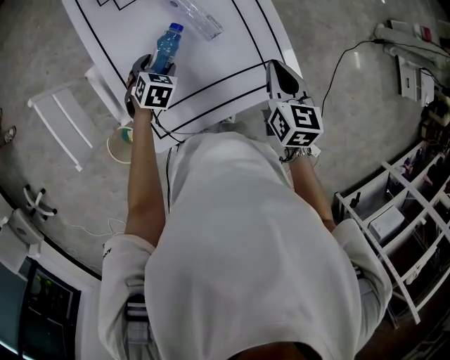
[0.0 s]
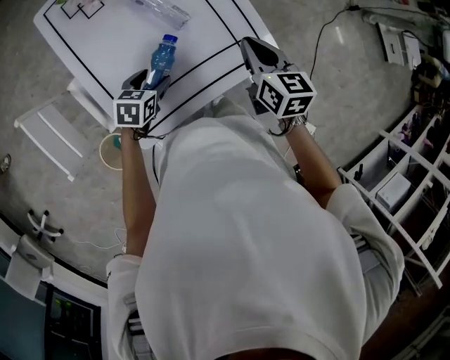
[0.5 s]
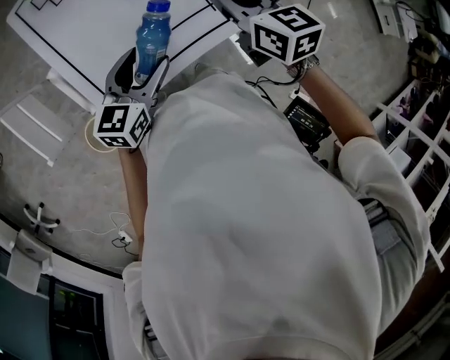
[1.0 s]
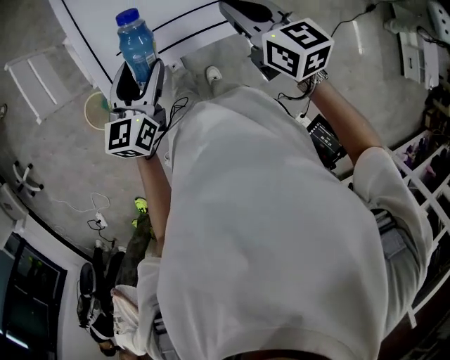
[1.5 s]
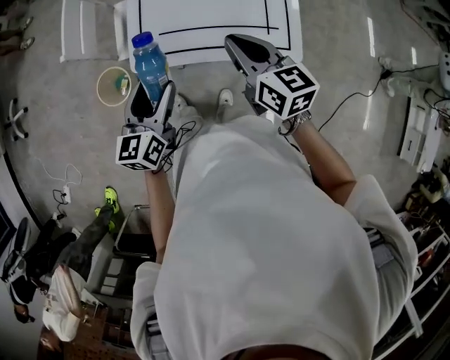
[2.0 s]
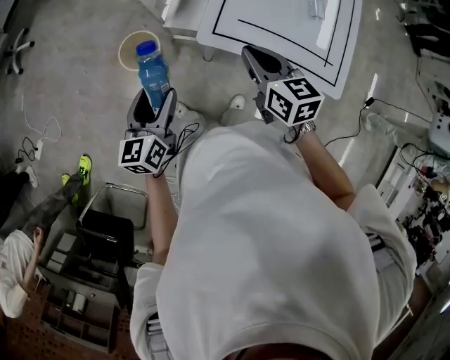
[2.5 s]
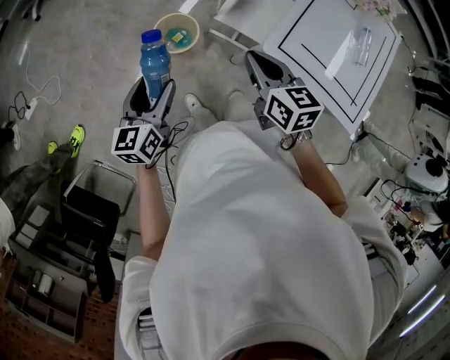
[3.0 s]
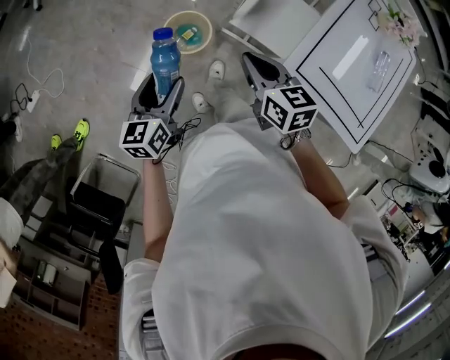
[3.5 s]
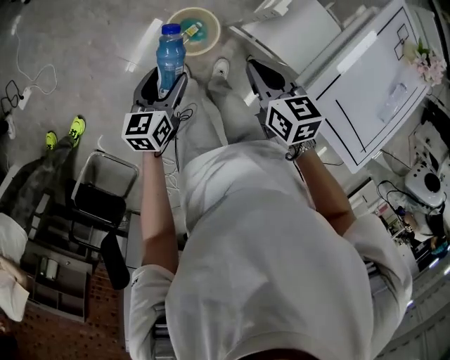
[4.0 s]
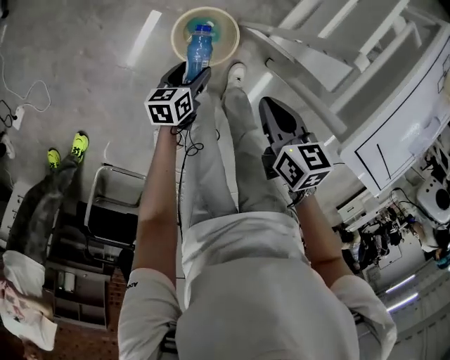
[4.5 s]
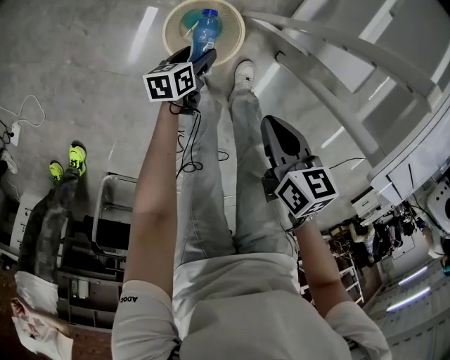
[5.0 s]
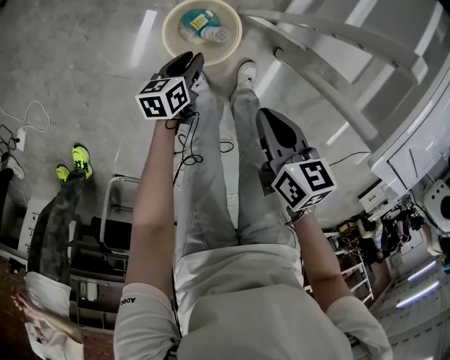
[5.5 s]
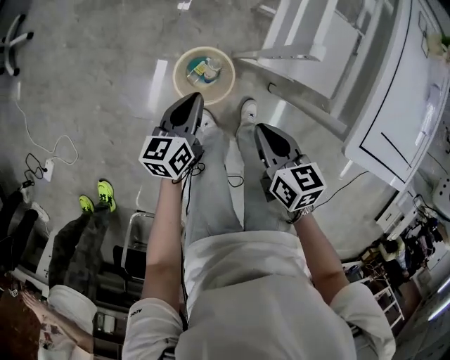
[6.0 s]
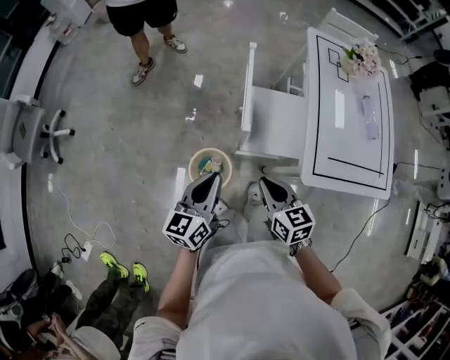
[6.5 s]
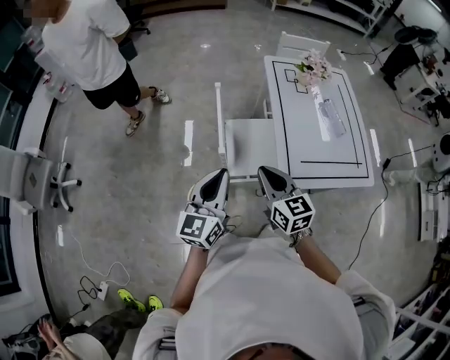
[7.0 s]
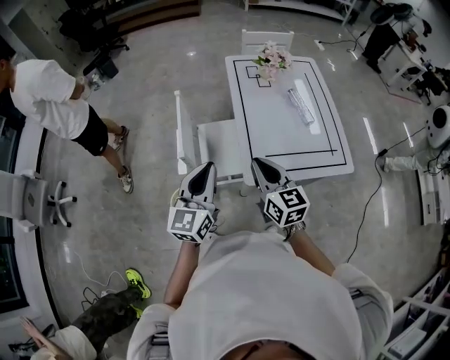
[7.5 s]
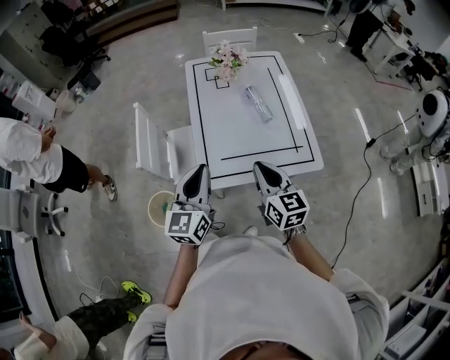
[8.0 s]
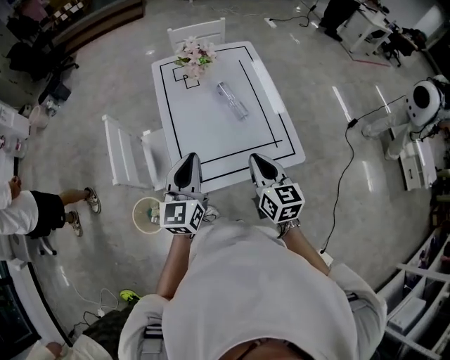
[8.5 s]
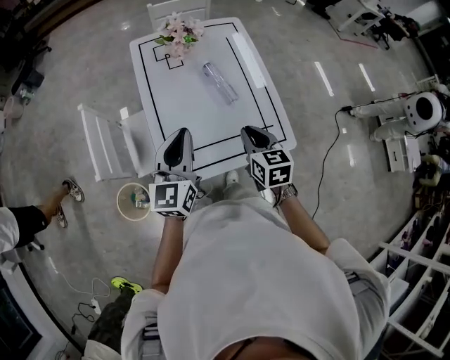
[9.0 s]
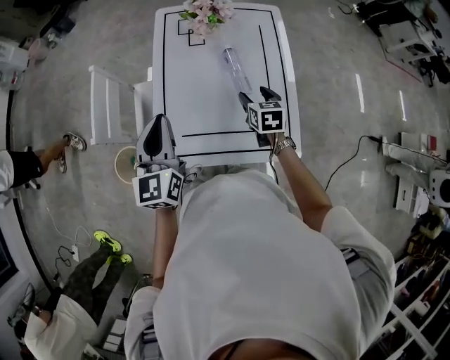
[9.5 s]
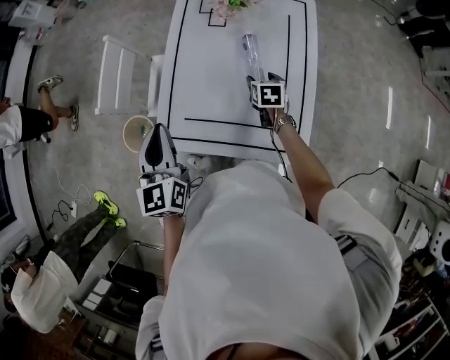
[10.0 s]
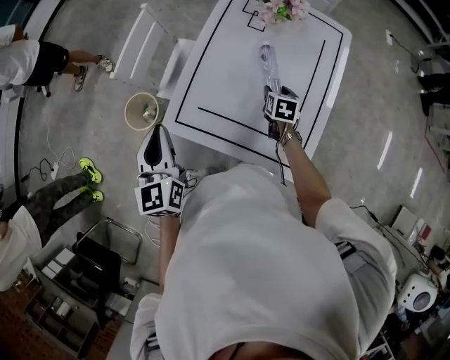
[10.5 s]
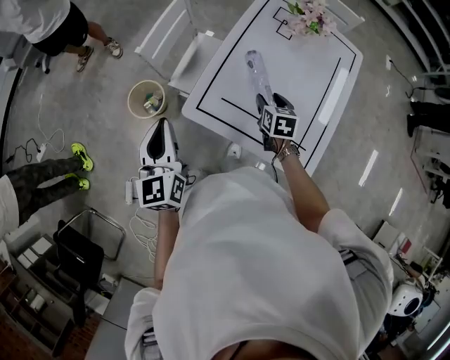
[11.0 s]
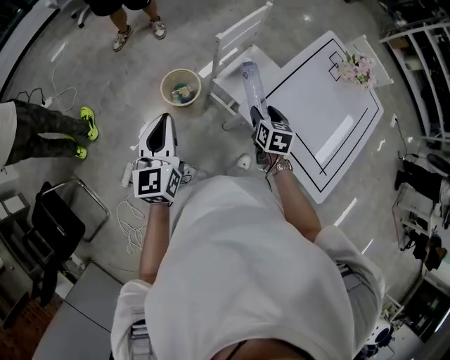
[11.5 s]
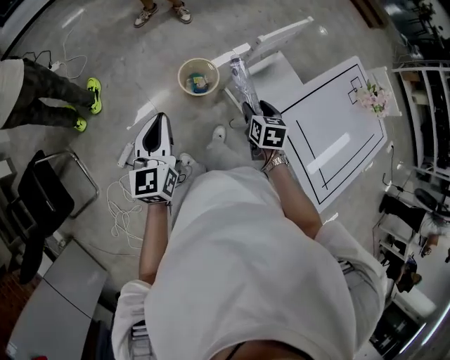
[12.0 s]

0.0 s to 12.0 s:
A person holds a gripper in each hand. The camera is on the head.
0.0 to 2.0 s: The right gripper changes place by some 15 cm, and turns by about 50 degrees, while the left gripper ends up about 40 cm from where it was, and tilts its fingers roughly 40 degrees upward.
2.0 to 4.0 s: The pair of grippers is taken approximately 60 cm. The left gripper turns by approximately 30 degrees. The right gripper rotates approximately 40 degrees.
4.0 to 6.0 s: The right gripper shifts roughly 15 cm downward, and rotates about 20 degrees; the left gripper travels forward by about 10 cm, reaches some 40 cm downward, then returns, and closes up.
6.0 to 8.0 s: Both grippers are carried about 50 cm. The right gripper changes its angle by about 40 degrees; the left gripper turns by about 40 degrees.
8.0 to 10.0 s: The right gripper ends up some 40 cm from where it was, points its fingers some 40 degrees further downward, and opens. Meanwhile the left gripper ends up approximately 15 cm from where it was, and turns by roughly 40 degrees.
10.0 to 12.0 s: The pair of grippers is taken roughly 60 cm. The left gripper rotates some 40 degrees. The right gripper changes its angle by about 40 degrees.

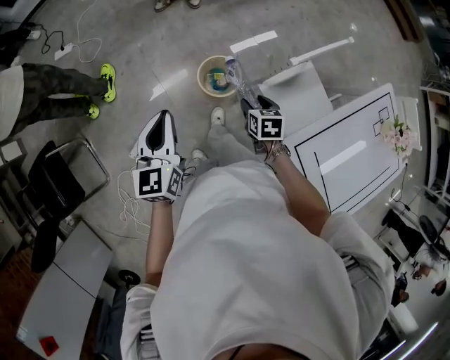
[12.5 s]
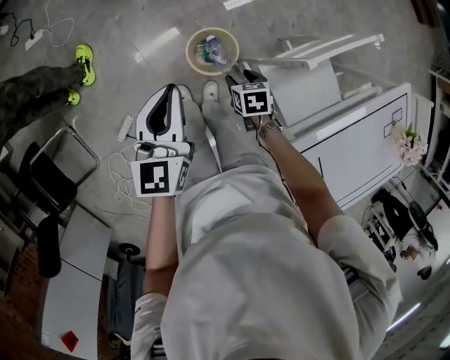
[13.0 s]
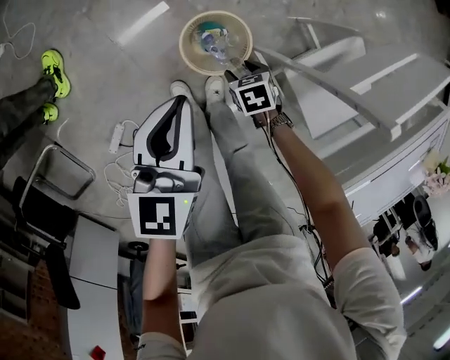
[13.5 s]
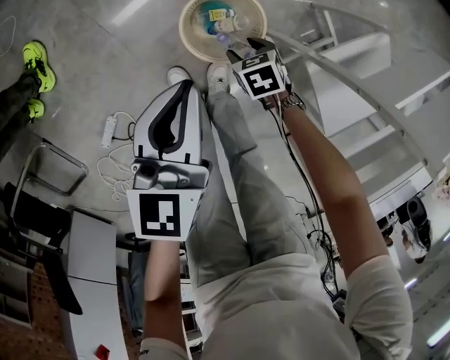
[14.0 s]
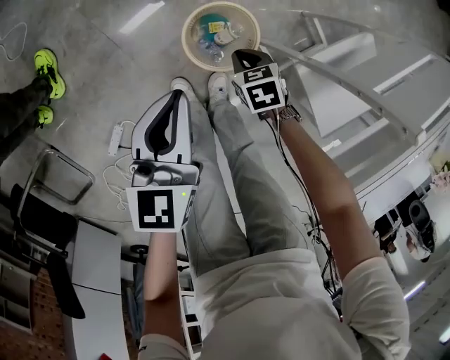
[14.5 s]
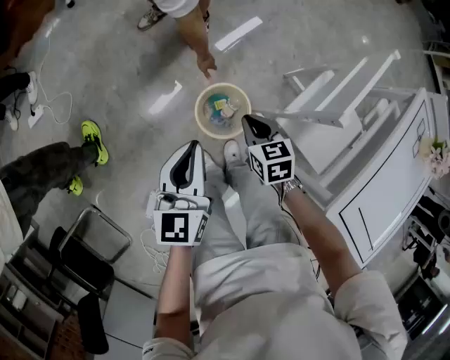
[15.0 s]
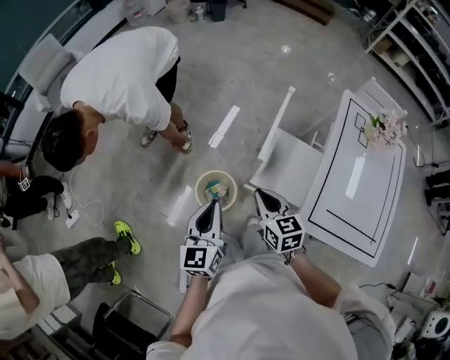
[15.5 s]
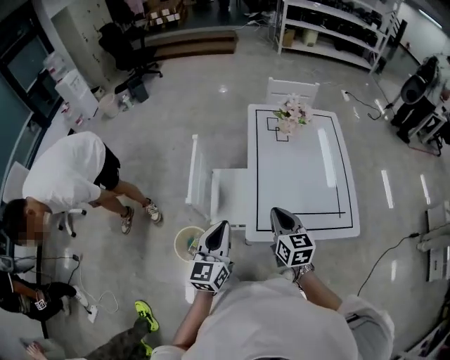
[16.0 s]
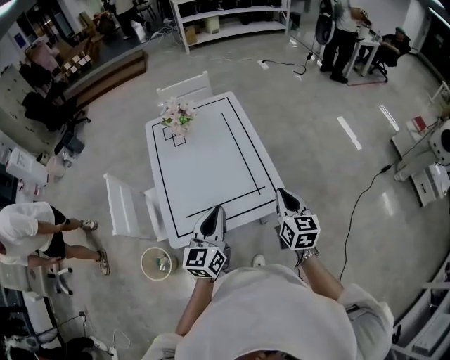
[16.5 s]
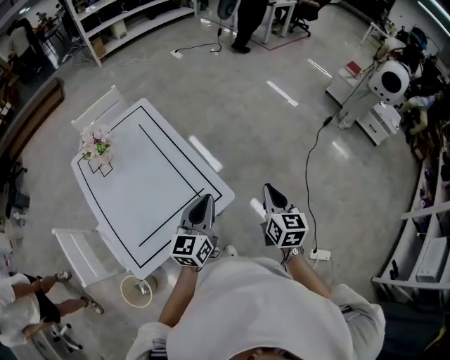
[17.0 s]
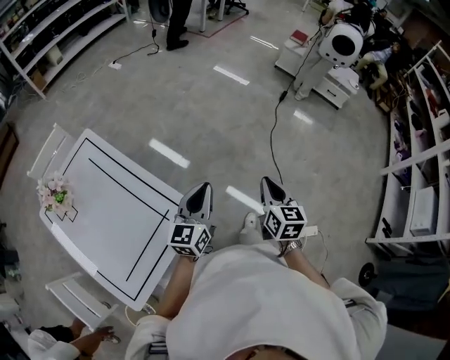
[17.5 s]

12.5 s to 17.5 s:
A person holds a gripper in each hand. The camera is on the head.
12.5 to 15.0 s: The left gripper changes place by some 30 cm, and swivels about 20 degrees; the right gripper closes its fingers.
15.0 to 17.5 s: The pair of grippers is taken roughly 1 m. The right gripper swivels roughly 120 degrees, while the left gripper rotates roughly 110 degrees.

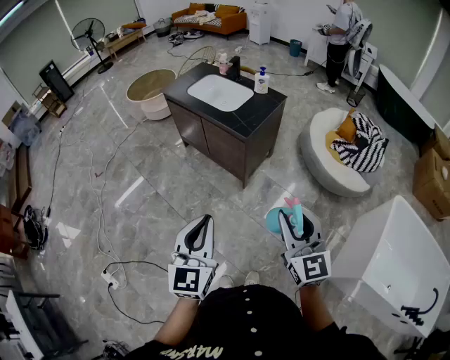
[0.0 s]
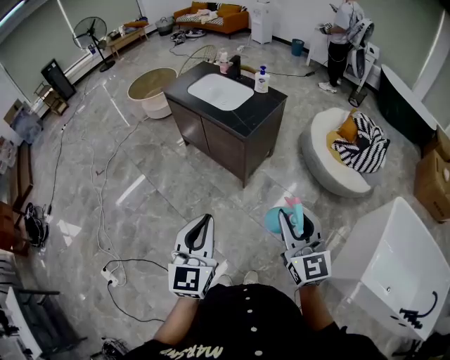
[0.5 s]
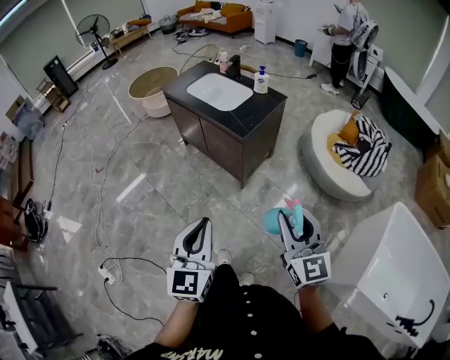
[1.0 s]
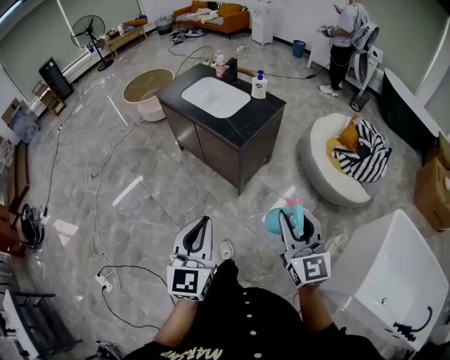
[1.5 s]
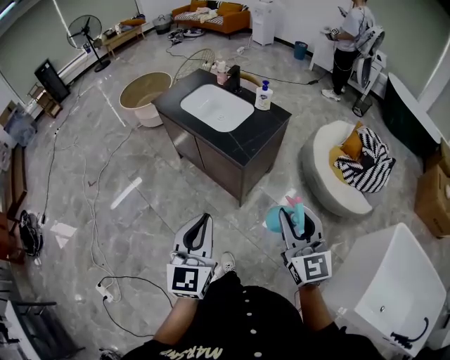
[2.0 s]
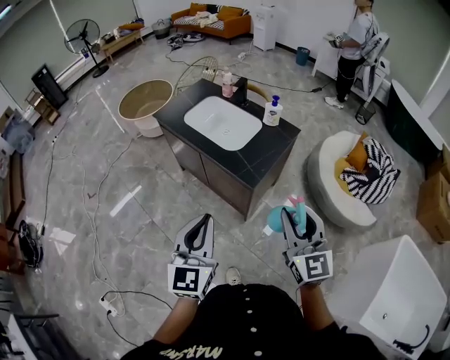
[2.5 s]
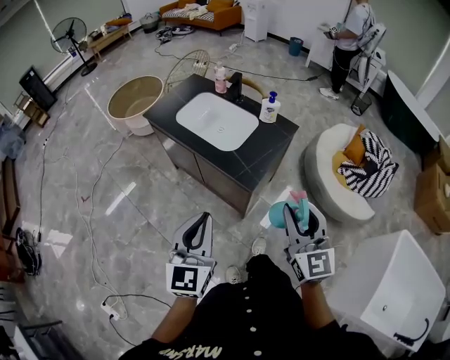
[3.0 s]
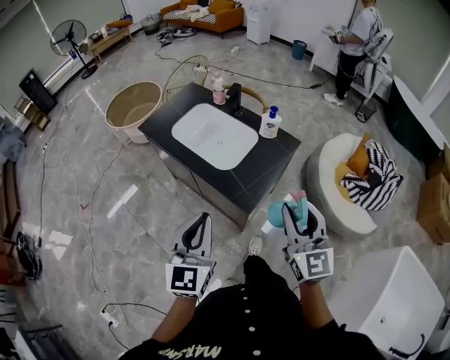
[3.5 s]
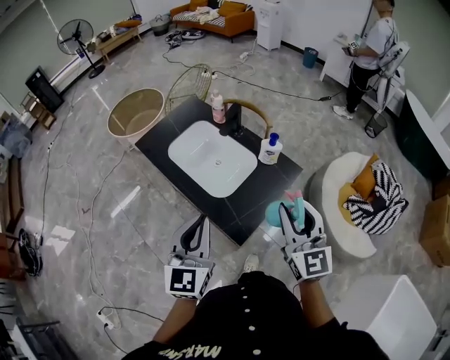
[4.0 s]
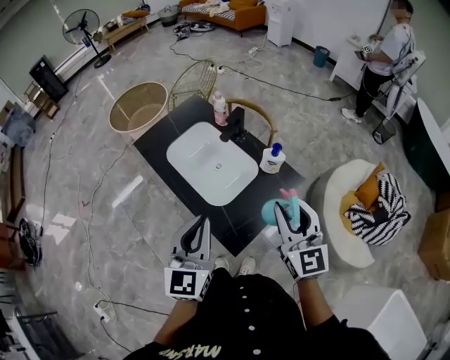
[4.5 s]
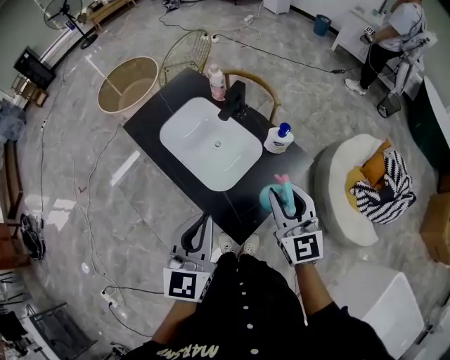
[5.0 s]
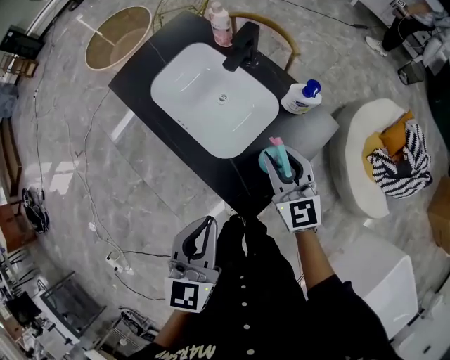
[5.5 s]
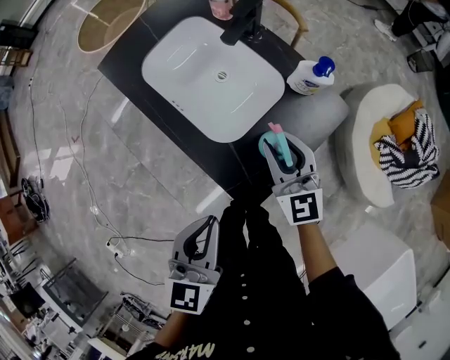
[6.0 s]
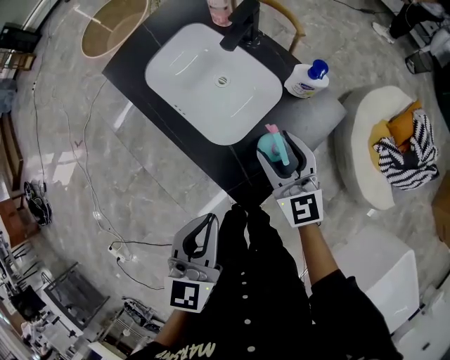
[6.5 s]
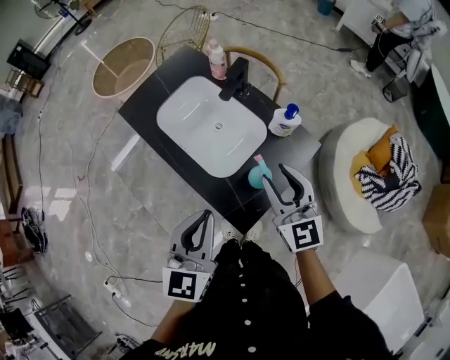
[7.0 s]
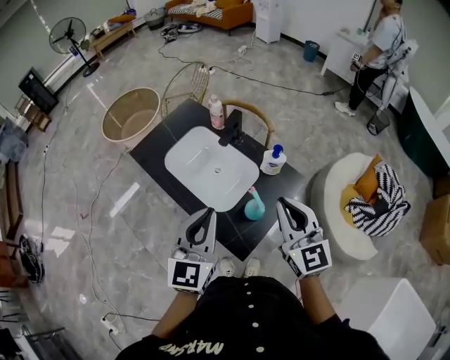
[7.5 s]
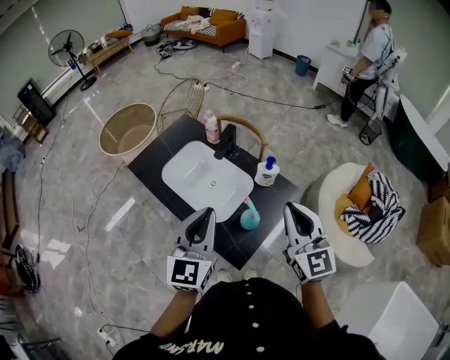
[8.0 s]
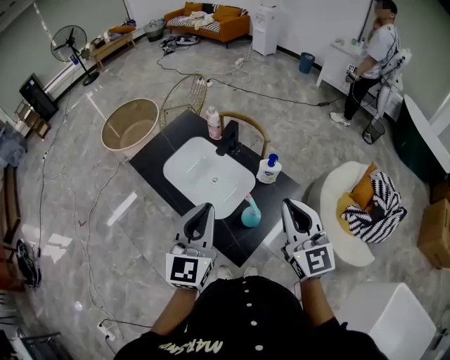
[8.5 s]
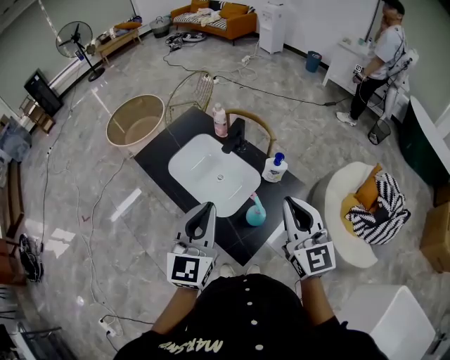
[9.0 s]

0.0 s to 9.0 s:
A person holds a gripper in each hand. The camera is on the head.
0.0 to 2.0 s: Both grippers travel together forward, approximately 20 cm.
2.0 to 4.5 s: The two grippers travel together, forward, approximately 50 cm.
4.5 to 7.0 s: The right gripper shifts approximately 15 cm downward, forward and to the left, and opens and closes again. Meanwhile the left gripper heads downward, covering approximately 5 cm.
7.0 to 9.0 s: The two grippers go some 10 cm upward. The right gripper closes its fingers.

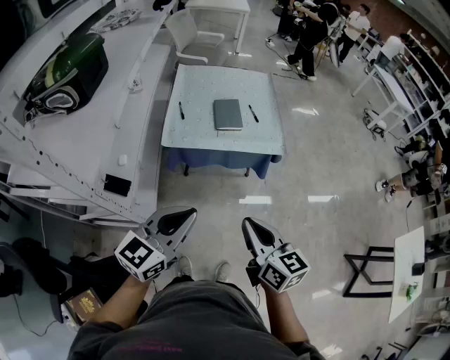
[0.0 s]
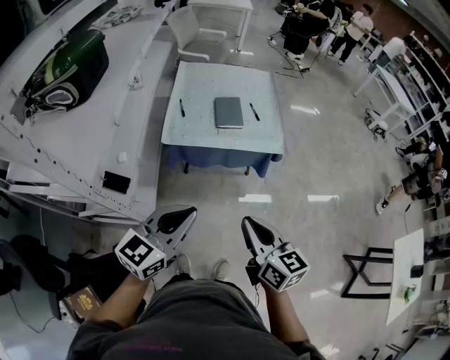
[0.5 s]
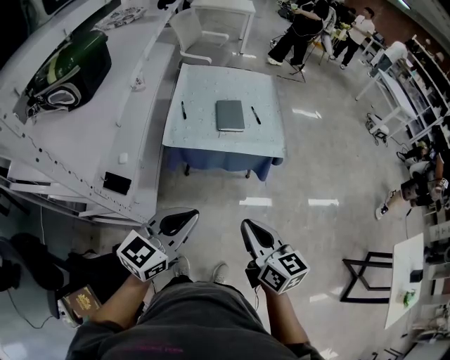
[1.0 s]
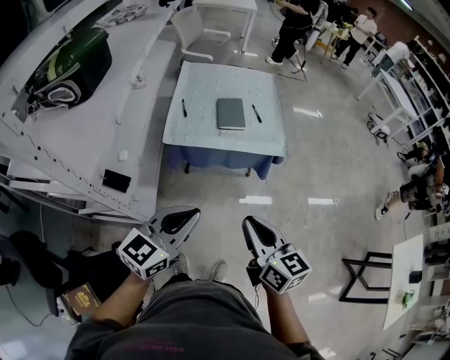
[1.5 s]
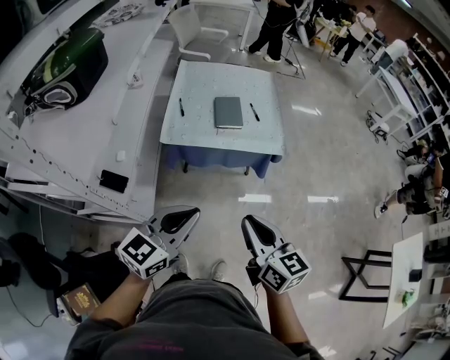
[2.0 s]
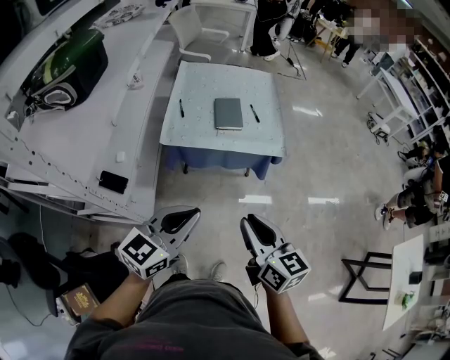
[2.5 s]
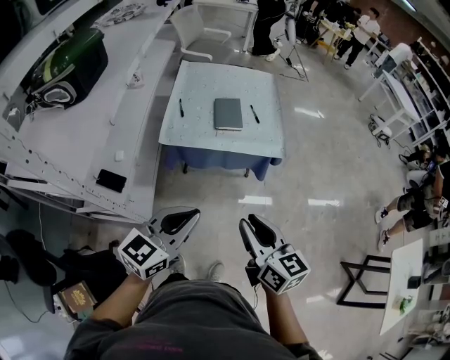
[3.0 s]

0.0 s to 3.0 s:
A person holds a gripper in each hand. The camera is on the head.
0.0 to 3.0 s: There are only small adjustments of the grippers.
